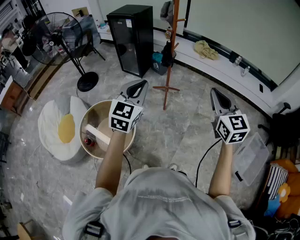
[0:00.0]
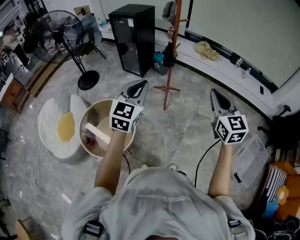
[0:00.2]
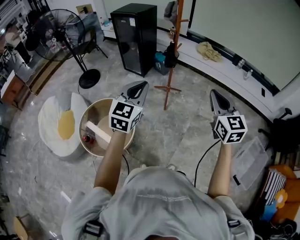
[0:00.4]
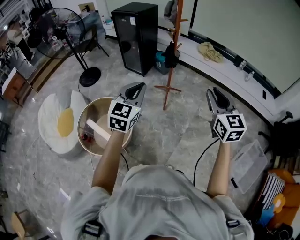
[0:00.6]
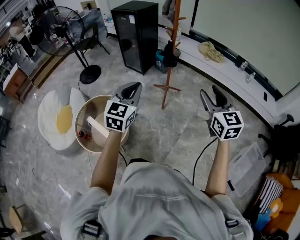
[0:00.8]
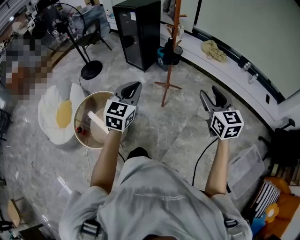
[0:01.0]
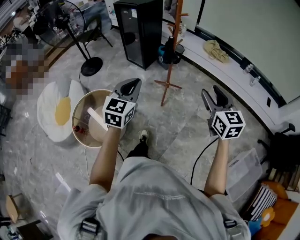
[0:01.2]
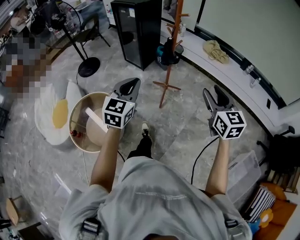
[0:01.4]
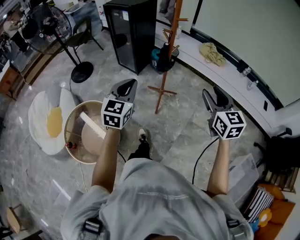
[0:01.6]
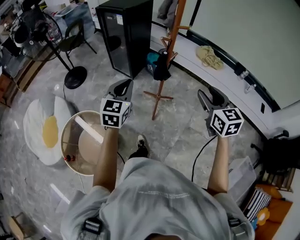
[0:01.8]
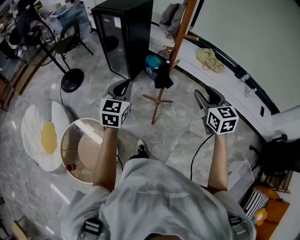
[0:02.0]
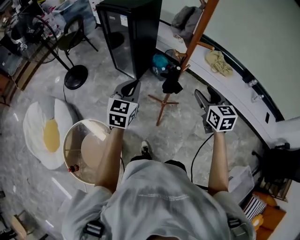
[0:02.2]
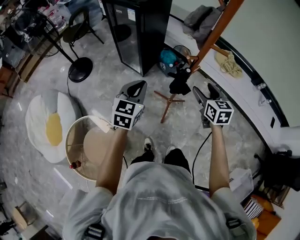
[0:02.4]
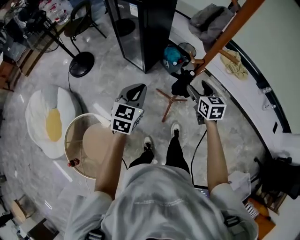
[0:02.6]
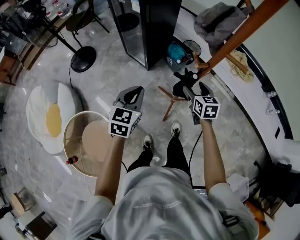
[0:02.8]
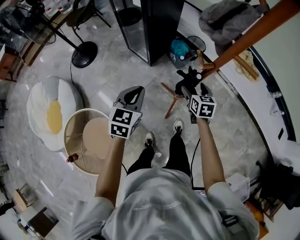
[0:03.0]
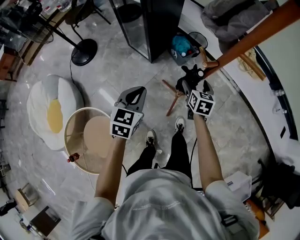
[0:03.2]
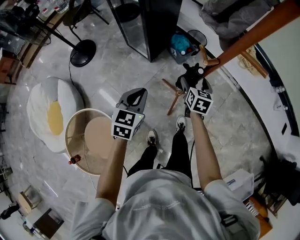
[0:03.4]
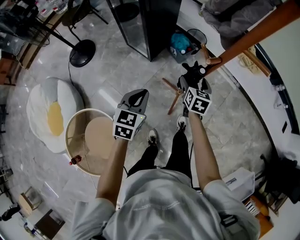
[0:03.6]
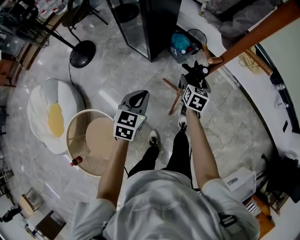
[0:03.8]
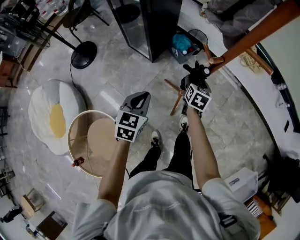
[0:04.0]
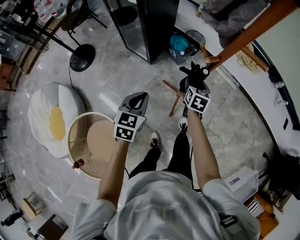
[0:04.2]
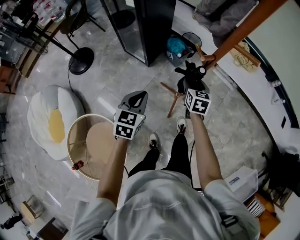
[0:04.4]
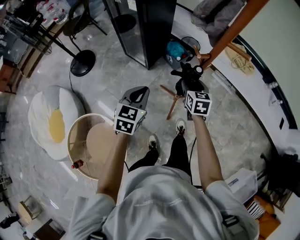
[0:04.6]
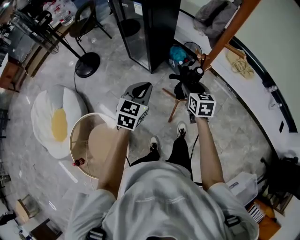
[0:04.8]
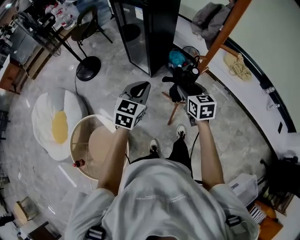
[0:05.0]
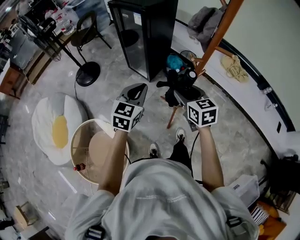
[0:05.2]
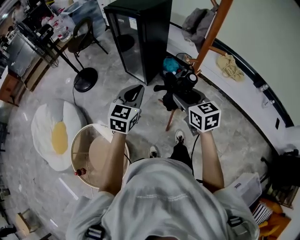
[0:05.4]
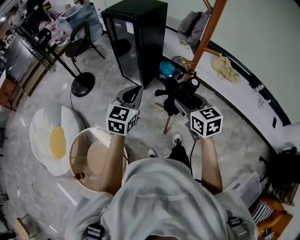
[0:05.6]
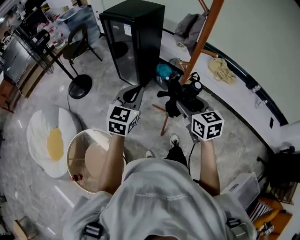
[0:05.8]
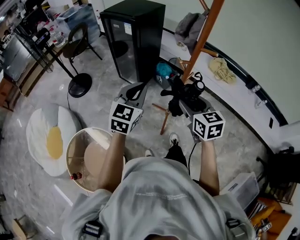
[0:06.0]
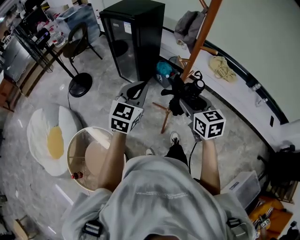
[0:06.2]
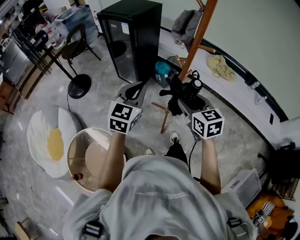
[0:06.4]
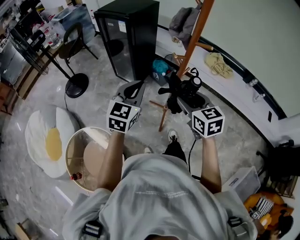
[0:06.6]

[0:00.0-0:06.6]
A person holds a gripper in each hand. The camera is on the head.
0:00.0 to 0:01.6: The left gripper heads forward and downward, covering about 20 cm. Meanwhile the right gripper moves forward, approximately 20 cm, and opens.
0:01.6 to 0:03.2: The left gripper is displaced forward and downward by about 35 cm, while the right gripper goes roughly 50 cm forward and downward, changes its angle by roughly 30 degrees, and opens.
0:03.2 to 0:05.0: The left gripper moves upward, approximately 10 cm. Meanwhile the right gripper moves upward, backward and to the left, roughly 20 cm, and closes up.
0:05.0 to 0:06.6: The left gripper is displaced upward by some 10 cm, while the right gripper shifts approximately 15 cm upward and backward.

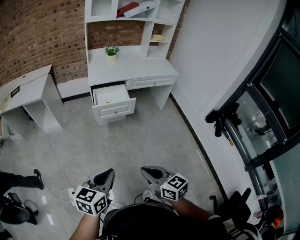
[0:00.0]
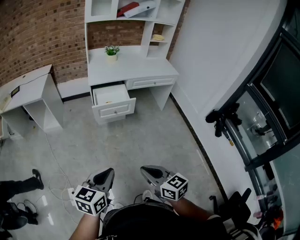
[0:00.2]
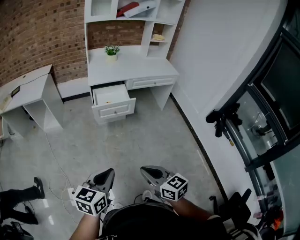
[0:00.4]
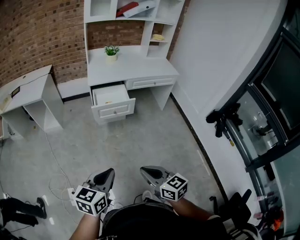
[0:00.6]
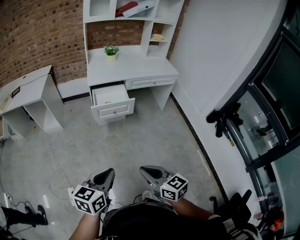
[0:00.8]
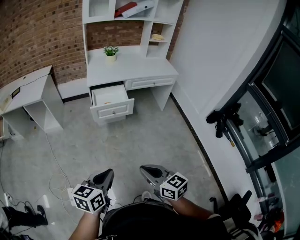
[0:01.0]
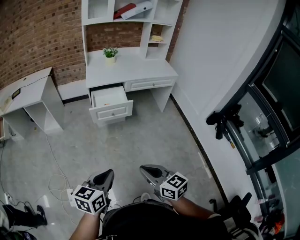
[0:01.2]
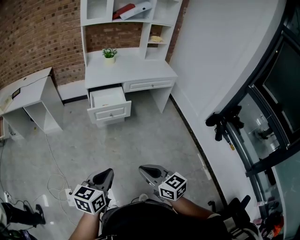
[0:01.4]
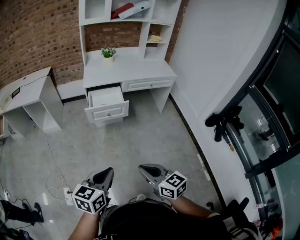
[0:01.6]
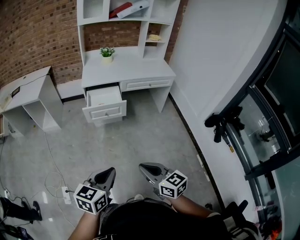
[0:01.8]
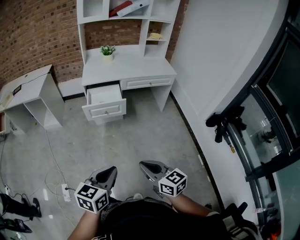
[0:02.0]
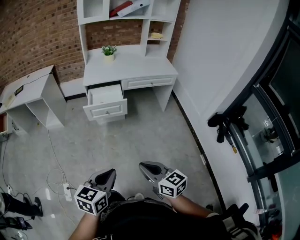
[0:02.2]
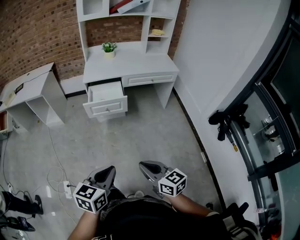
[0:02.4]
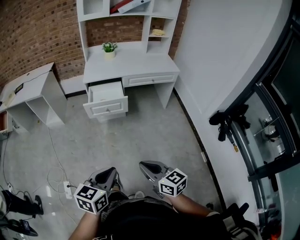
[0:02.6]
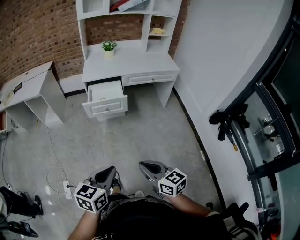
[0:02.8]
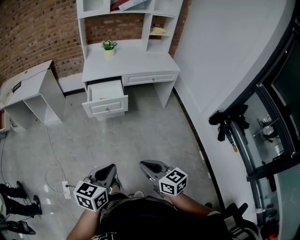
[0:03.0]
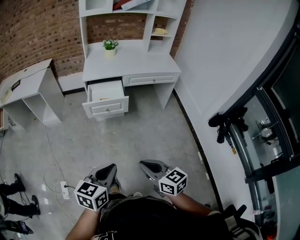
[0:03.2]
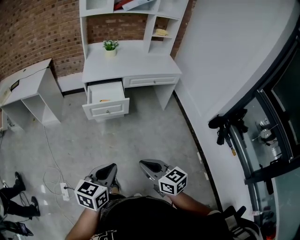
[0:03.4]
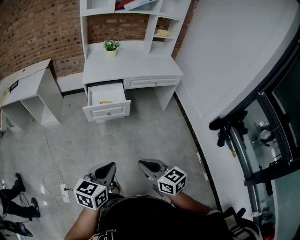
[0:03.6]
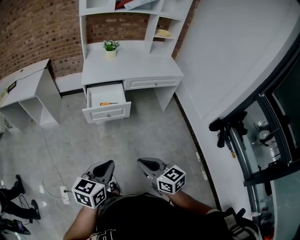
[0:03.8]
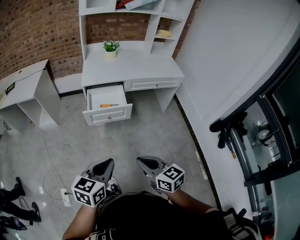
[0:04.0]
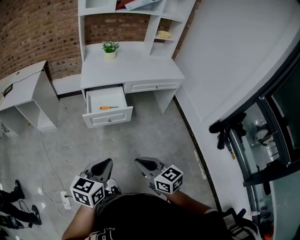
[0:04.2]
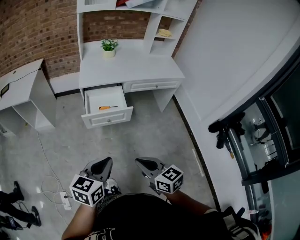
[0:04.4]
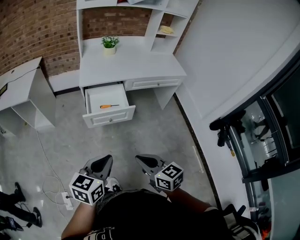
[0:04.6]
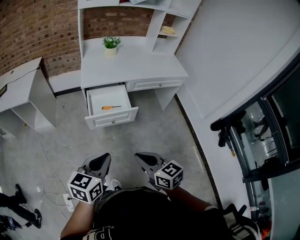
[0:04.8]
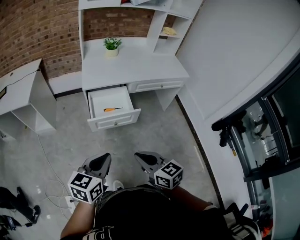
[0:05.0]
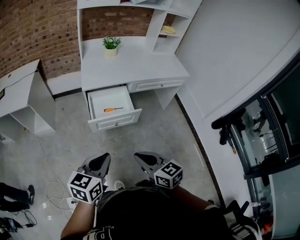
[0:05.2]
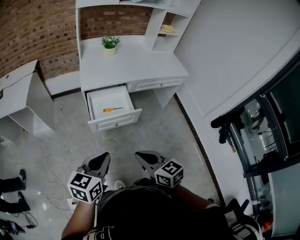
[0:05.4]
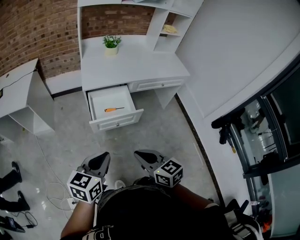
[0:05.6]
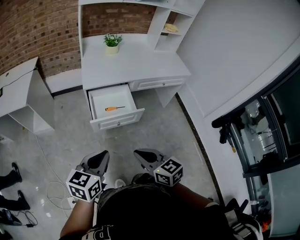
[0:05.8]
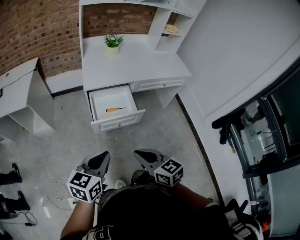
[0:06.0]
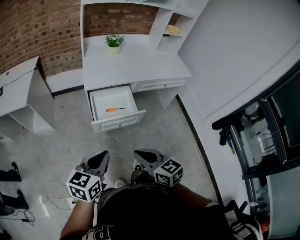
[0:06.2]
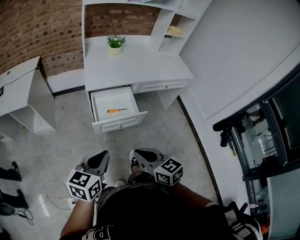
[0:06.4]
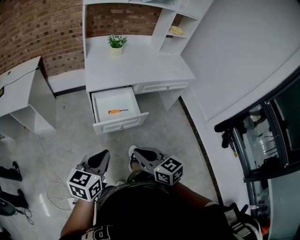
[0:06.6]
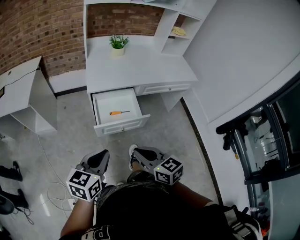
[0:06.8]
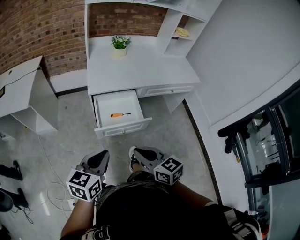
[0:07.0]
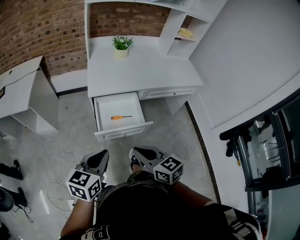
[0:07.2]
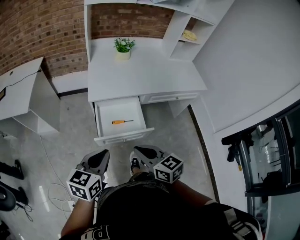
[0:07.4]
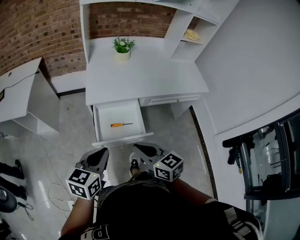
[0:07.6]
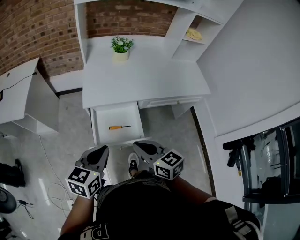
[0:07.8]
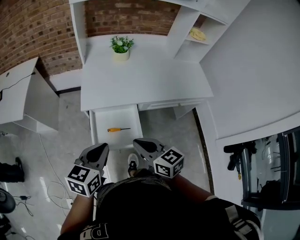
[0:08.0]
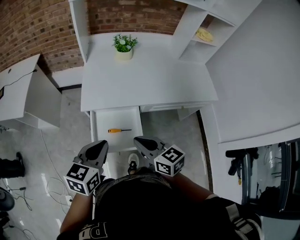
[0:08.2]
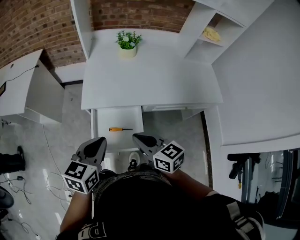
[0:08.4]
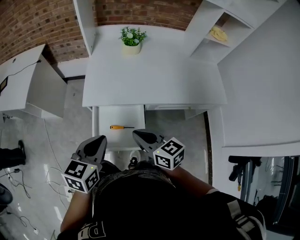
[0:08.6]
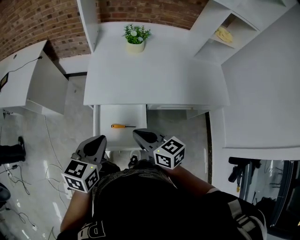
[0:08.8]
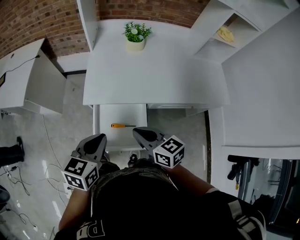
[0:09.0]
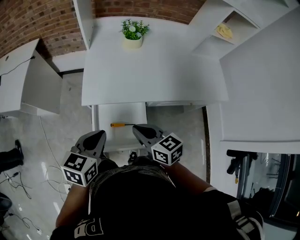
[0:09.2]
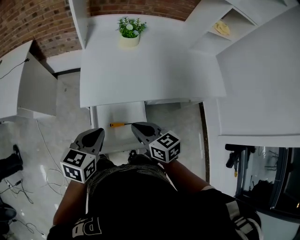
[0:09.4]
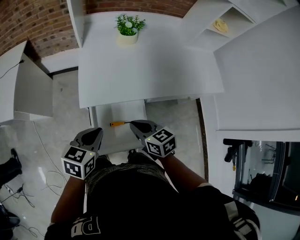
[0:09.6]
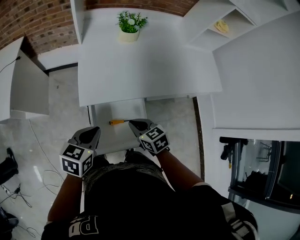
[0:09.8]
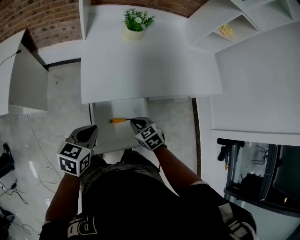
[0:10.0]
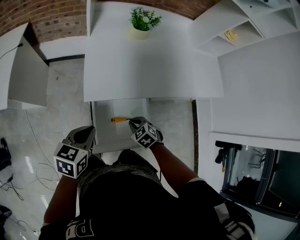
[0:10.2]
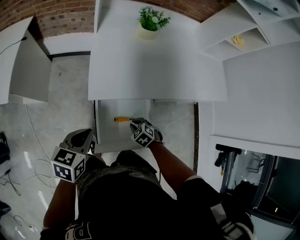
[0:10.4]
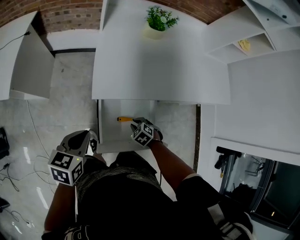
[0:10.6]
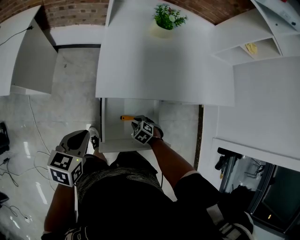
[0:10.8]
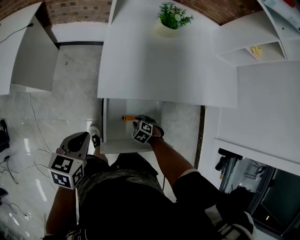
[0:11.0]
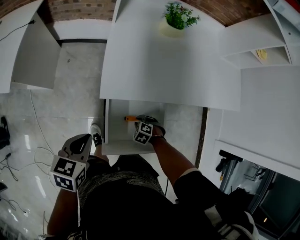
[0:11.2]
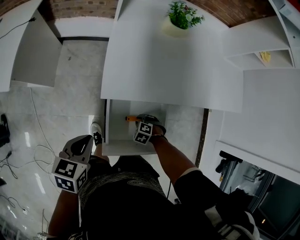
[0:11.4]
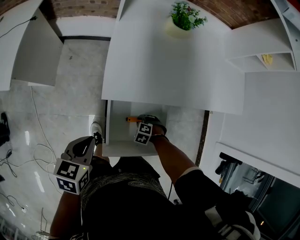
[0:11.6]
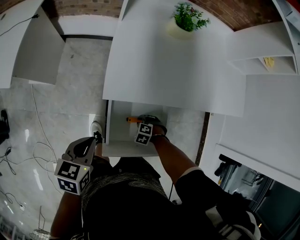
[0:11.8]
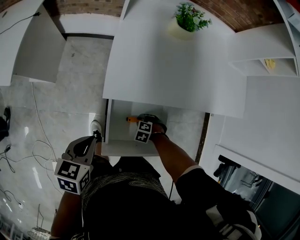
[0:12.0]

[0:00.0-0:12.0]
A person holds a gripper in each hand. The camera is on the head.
0:00.0 to 0:01.6: Both grippers move to the right, approximately 10 cm.
0:01.6 to 0:03.0: Both grippers move to the right, roughly 5 cm.
0:03.0 to 0:04.4: The right gripper heads forward and to the left, covering about 20 cm; the left gripper is displaced forward by some 20 cm.
0:04.4 to 0:06.0: The two grippers go roughly 15 cm forward and to the left.
0:06.0 to 0:07.6: The two grippers go approximately 20 cm forward.
0:07.6 to 0:09.0: Both grippers travel together forward, some 15 cm.
0:09.0 to 0:10.4: The left gripper heads to the left and downward, covering about 15 cm. The right gripper moves downward, about 30 cm, and tips its fingers downward by some 50 degrees.
0:10.4 to 0:12.0: The right gripper is displaced downward by about 10 cm, and swivels about 30 degrees. The left gripper shifts by roughly 5 cm.

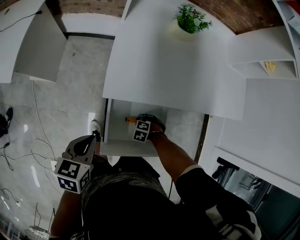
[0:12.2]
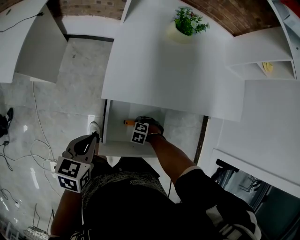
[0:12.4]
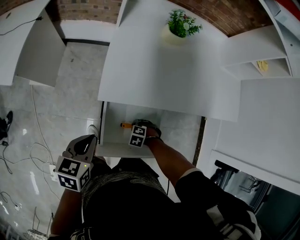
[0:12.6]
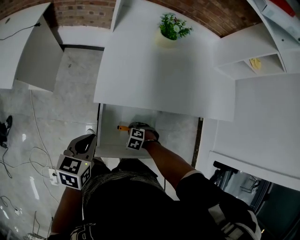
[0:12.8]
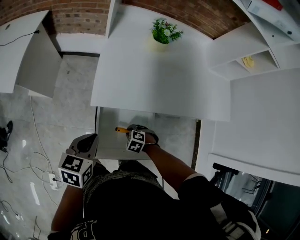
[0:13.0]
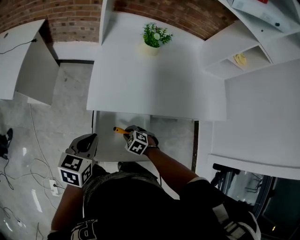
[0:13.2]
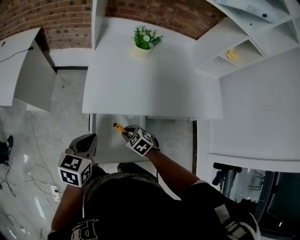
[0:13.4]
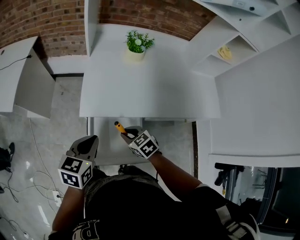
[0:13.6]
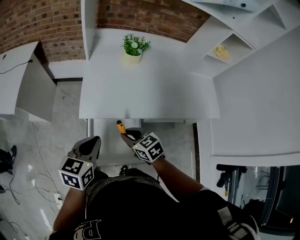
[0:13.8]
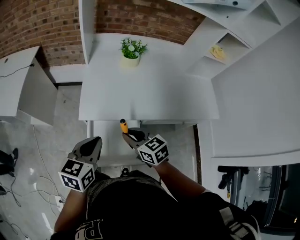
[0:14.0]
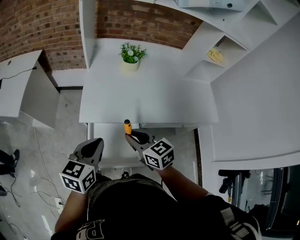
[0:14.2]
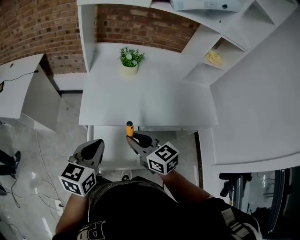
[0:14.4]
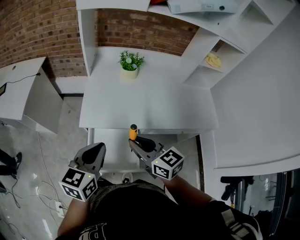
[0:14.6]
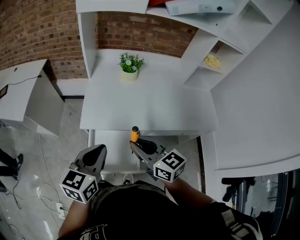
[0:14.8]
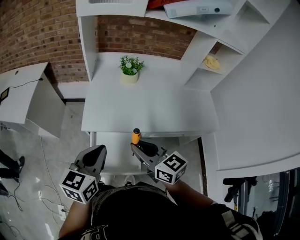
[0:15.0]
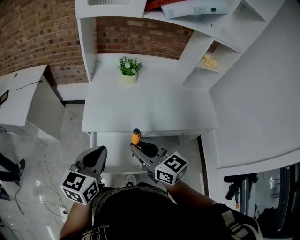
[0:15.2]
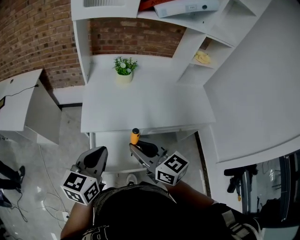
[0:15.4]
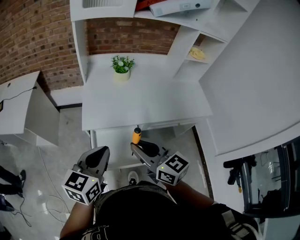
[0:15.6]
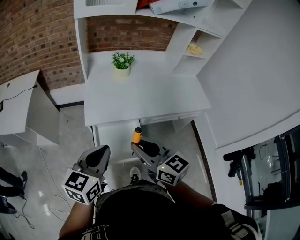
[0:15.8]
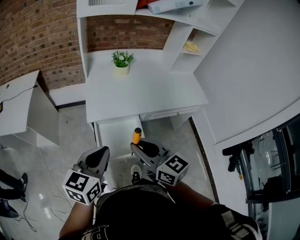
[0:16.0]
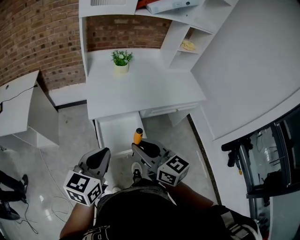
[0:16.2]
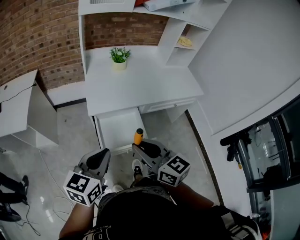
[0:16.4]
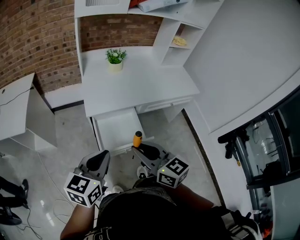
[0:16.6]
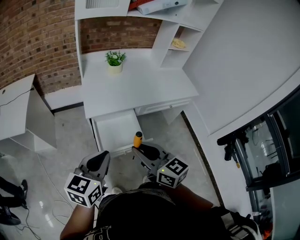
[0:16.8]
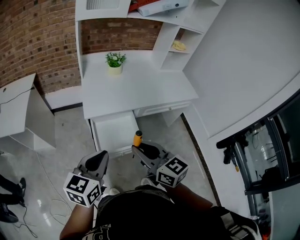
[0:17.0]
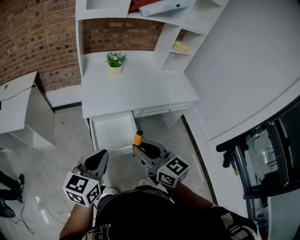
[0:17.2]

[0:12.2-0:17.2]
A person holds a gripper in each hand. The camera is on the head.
0:12.2 to 0:13.8: The left gripper ends up about 20 cm from where it was. The right gripper is displaced upward by some 30 cm, and tips its fingers upward by roughly 50 degrees.
0:13.8 to 0:15.6: The right gripper moves upward and backward, about 25 cm, and tips its fingers upward by about 30 degrees. Meanwhile the left gripper moves upward and backward, about 15 cm.
0:15.6 to 0:17.2: Both grippers travel together backward, some 15 cm.
